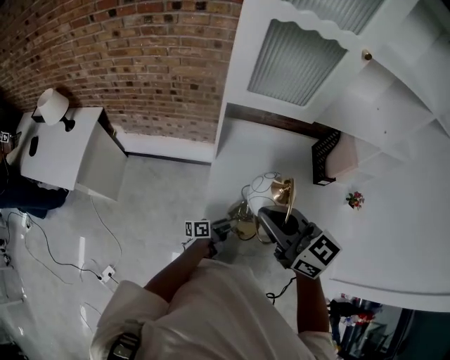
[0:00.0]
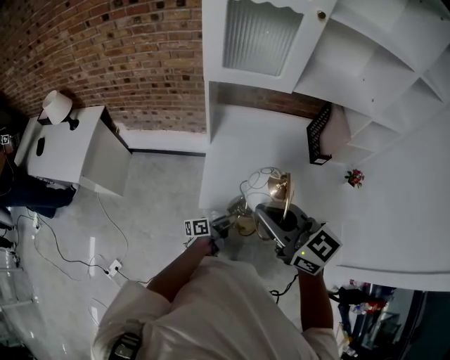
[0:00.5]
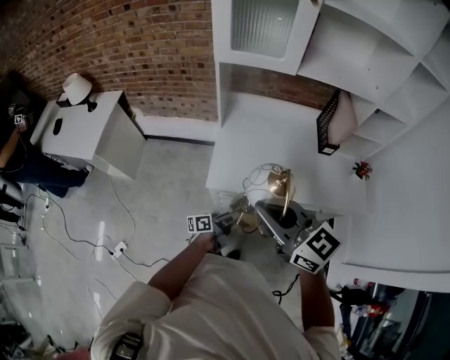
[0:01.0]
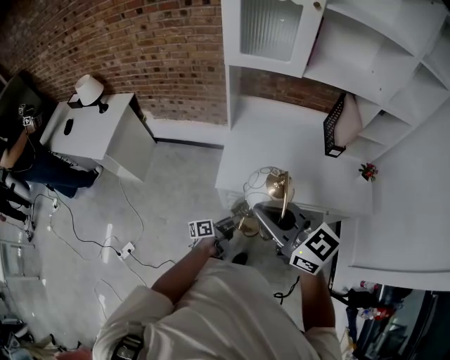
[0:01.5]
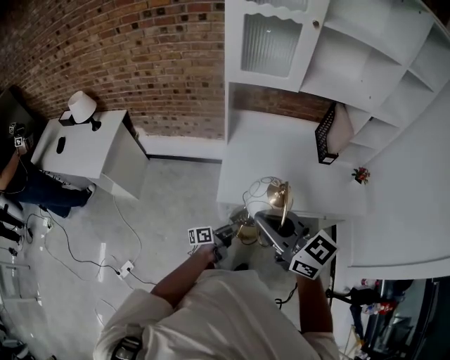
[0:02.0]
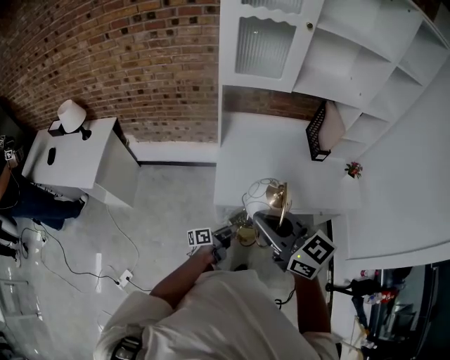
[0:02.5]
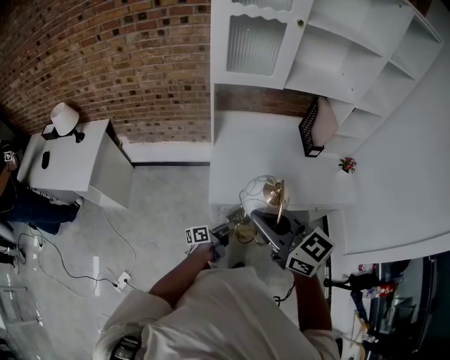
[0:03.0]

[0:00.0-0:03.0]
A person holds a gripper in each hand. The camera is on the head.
0:00.0 to 0:01.5: The grippers both shift backward by approximately 20 cm.
0:01.5 to 0:03.0: The right gripper goes roughly 5 cm to the left.

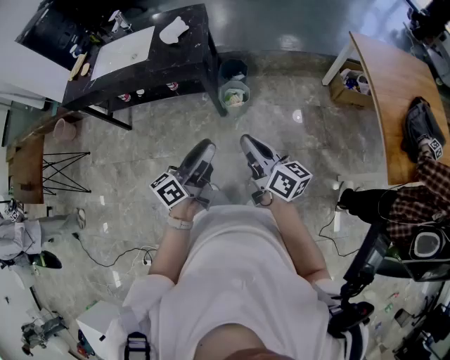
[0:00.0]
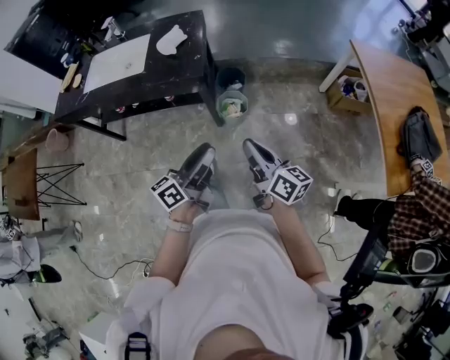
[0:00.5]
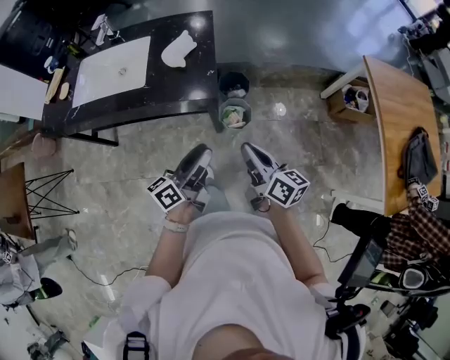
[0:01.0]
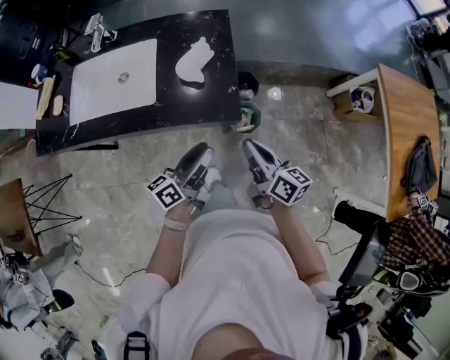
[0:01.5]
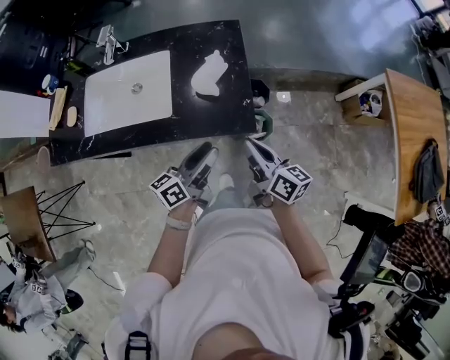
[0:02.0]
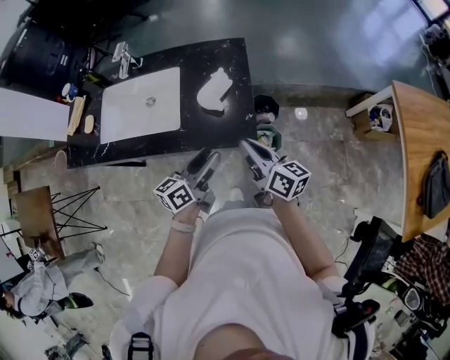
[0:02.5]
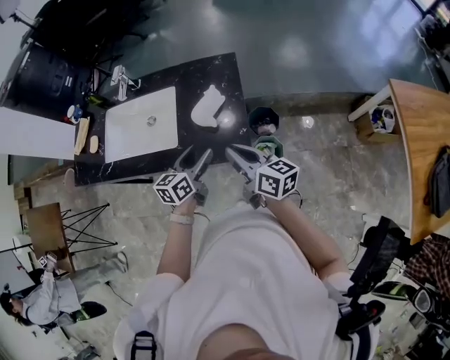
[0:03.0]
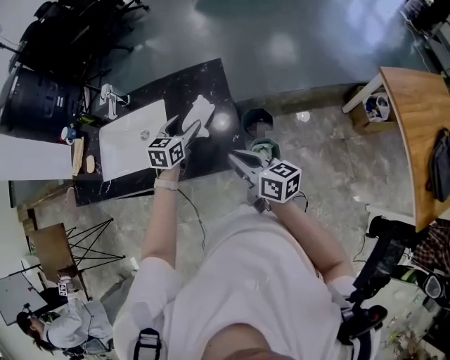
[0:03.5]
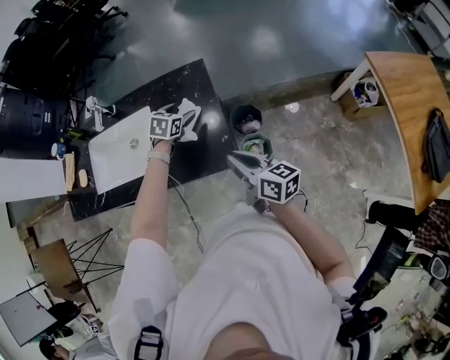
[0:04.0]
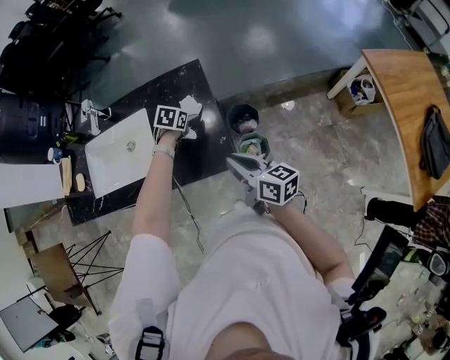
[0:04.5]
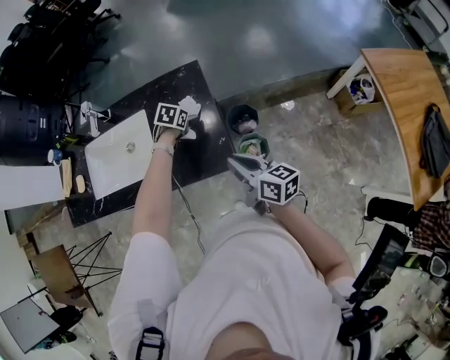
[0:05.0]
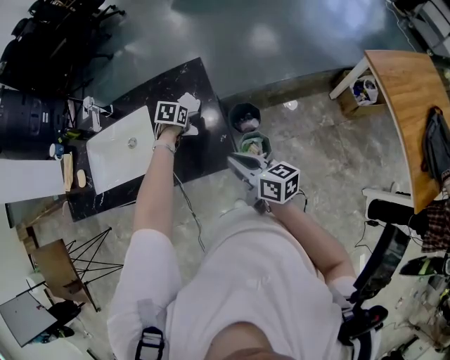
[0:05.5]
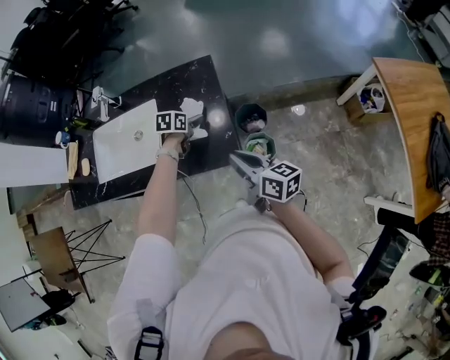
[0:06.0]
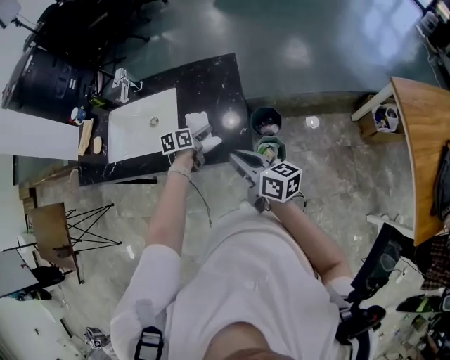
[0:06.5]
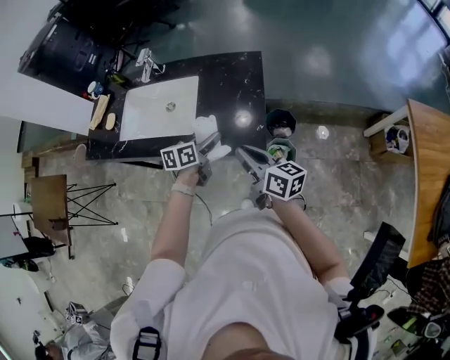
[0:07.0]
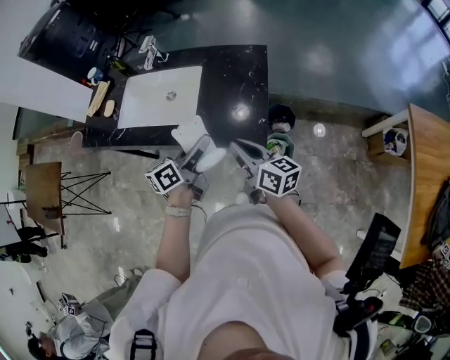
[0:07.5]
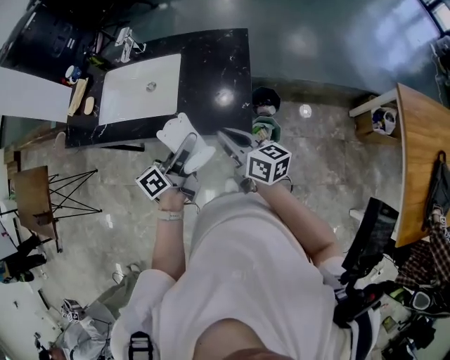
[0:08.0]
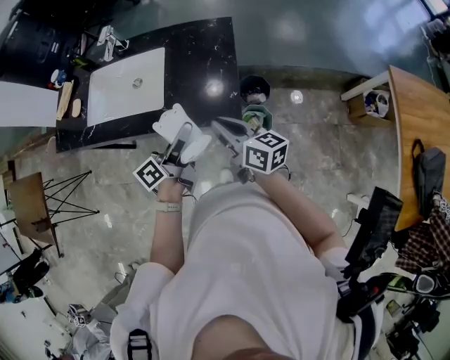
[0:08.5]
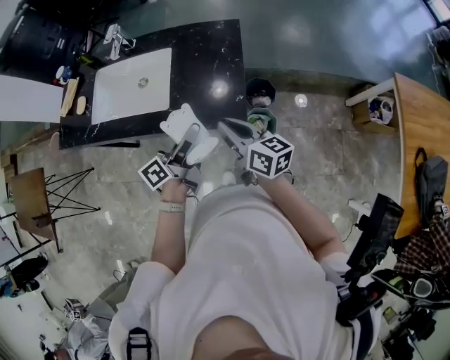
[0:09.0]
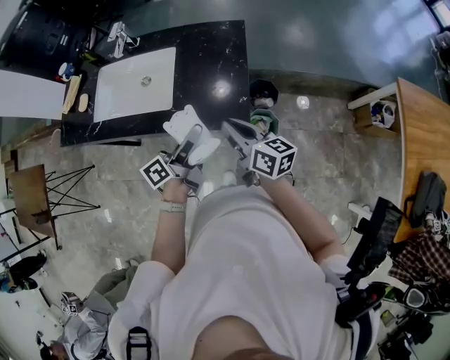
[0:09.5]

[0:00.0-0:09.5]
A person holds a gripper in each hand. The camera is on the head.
0:00.0 to 0:02.0: The two grippers travel together, forward and to the left, roughly 50 cm.
0:02.0 to 0:04.0: The right gripper heads forward and to the right, covering approximately 10 cm, while the left gripper moves forward, some 30 cm, points its fingers approximately 50 degrees further downward, and opens.
0:04.0 to 0:05.5: The left gripper is displaced downward by roughly 5 cm.
0:05.5 to 0:07.5: The left gripper moves backward and upward, approximately 30 cm, and points its fingers some 50 degrees further upward. Meanwhile the right gripper goes approximately 10 cm to the left.
0:07.5 to 0:09.5: The left gripper swivels some 20 degrees.

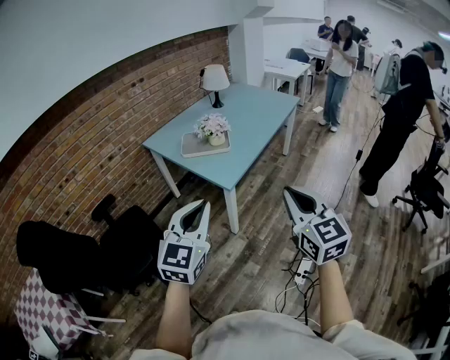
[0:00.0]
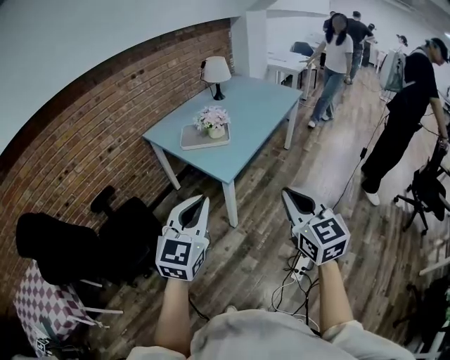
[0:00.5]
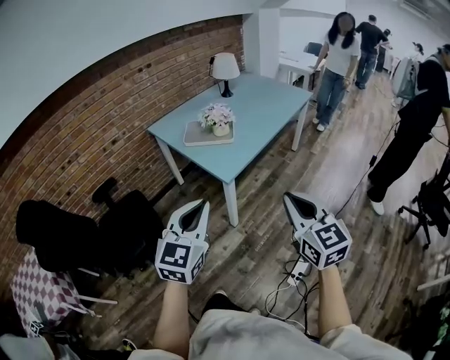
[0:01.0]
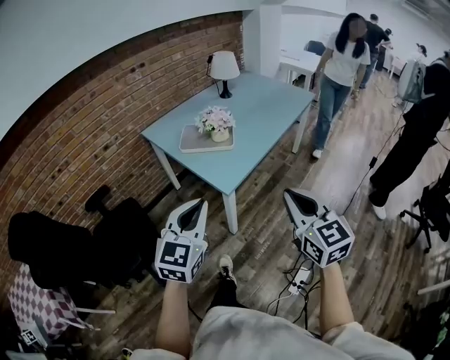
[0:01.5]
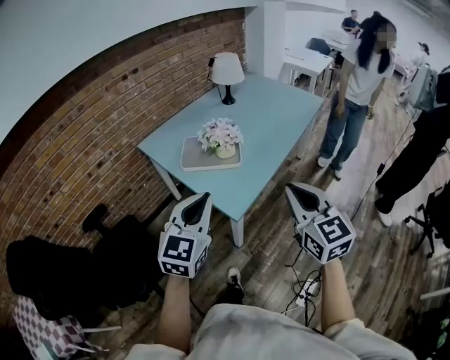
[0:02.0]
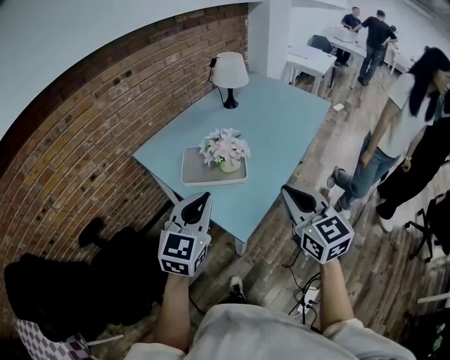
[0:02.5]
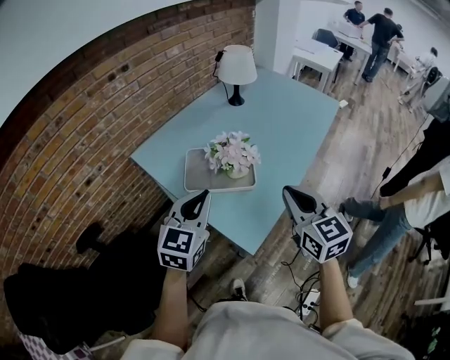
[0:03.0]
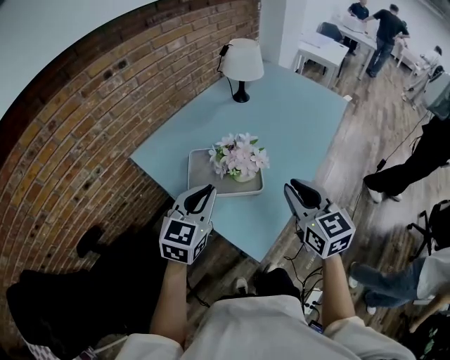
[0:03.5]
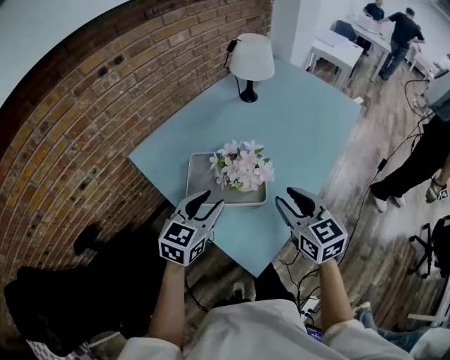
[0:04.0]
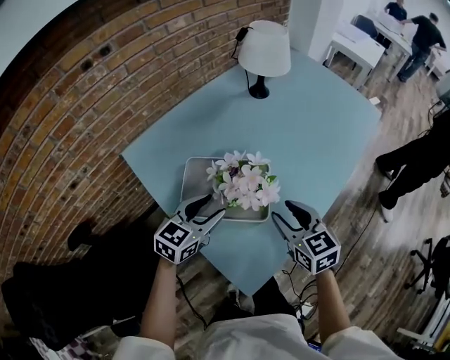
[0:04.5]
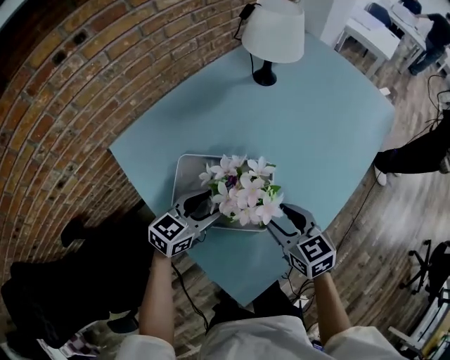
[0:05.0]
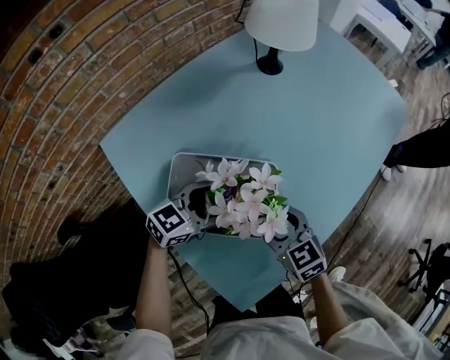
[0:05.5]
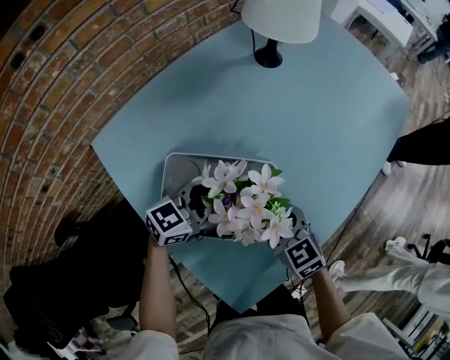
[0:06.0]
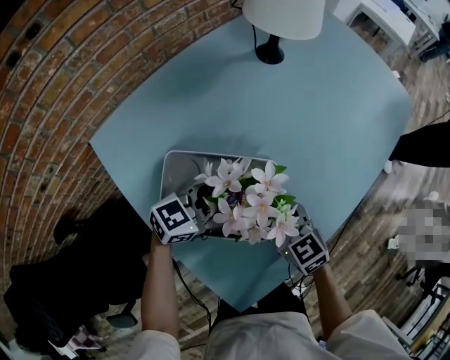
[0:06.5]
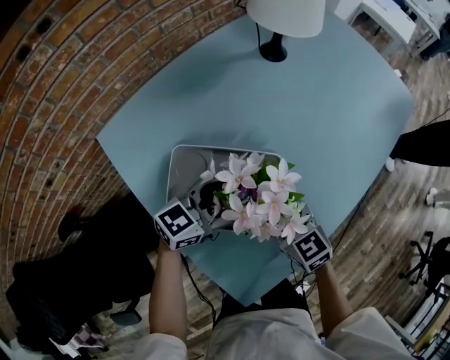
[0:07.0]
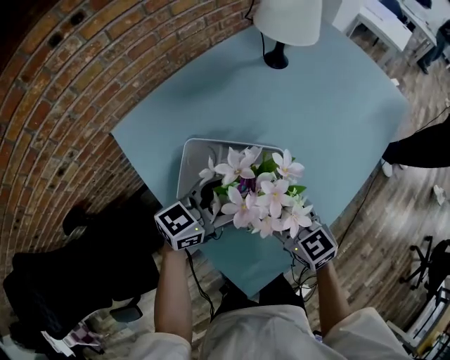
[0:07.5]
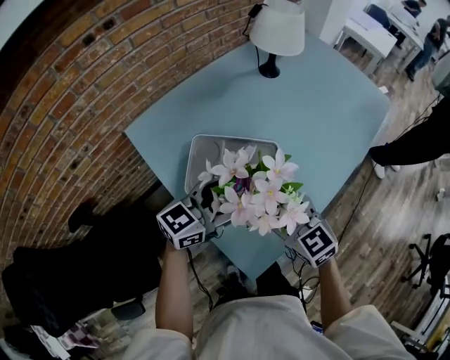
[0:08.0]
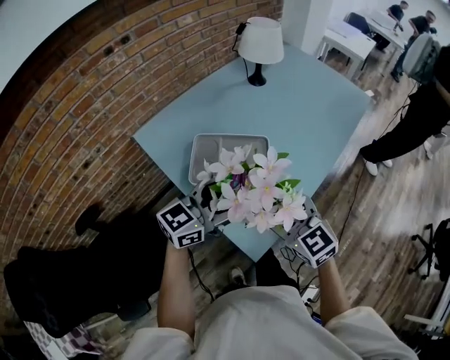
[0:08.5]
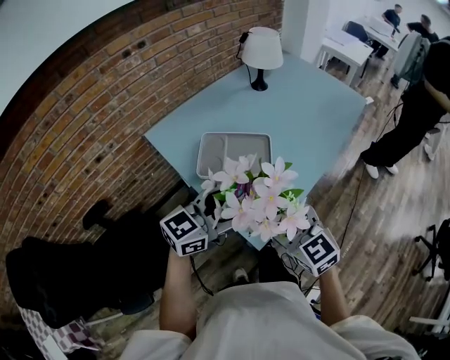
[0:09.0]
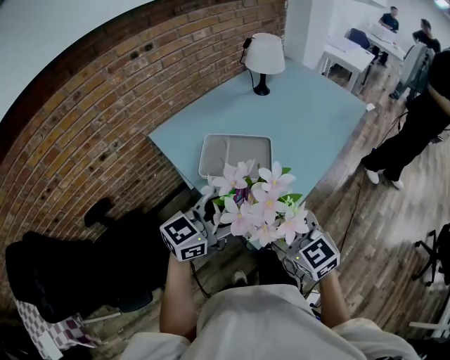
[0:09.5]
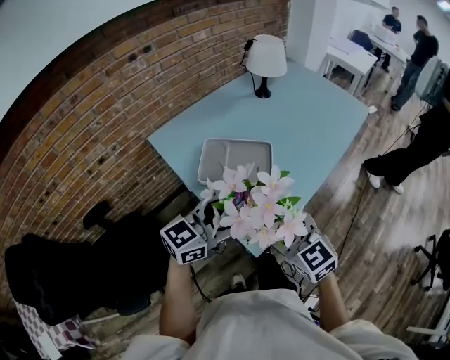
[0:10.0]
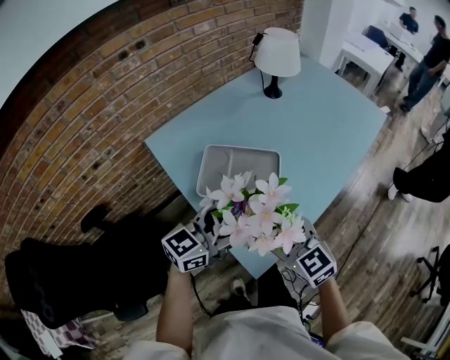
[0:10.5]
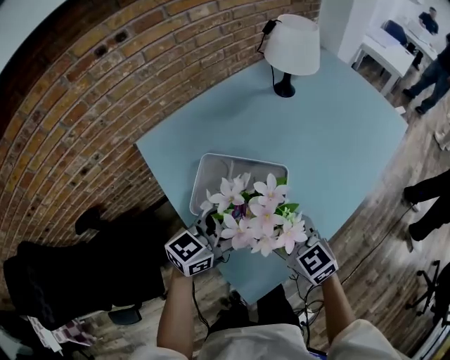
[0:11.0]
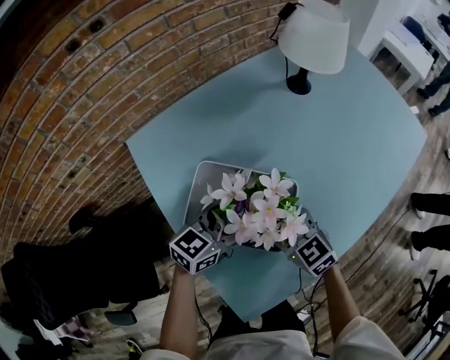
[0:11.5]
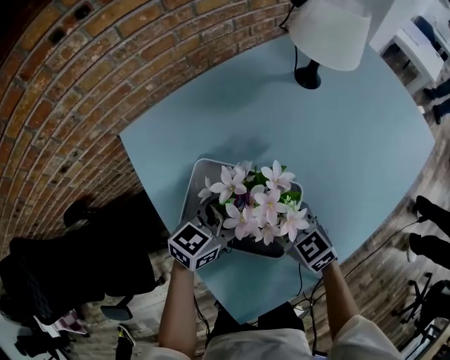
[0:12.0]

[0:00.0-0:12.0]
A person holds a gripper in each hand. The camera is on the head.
0:00.0 to 0:02.0: The grippers both shift forward by approximately 25 cm.
0:02.0 to 0:04.0: The two grippers go about 35 cm forward and downward. The left gripper opens, while the right gripper opens up.
0:04.0 to 0:06.0: Both grippers move downward and forward, roughly 25 cm. The left gripper swivels some 30 degrees, and opens. Meanwhile the right gripper rotates about 30 degrees, and opens.
0:06.0 to 0:08.0: The two grippers go some 15 cm upward and backward.
0:08.0 to 0:10.0: The two grippers go about 15 cm backward and upward.
0:10.0 to 0:12.0: Both grippers move forward and downward, roughly 35 cm. The right gripper changes its angle by approximately 20 degrees, while the left gripper swivels roughly 30 degrees.

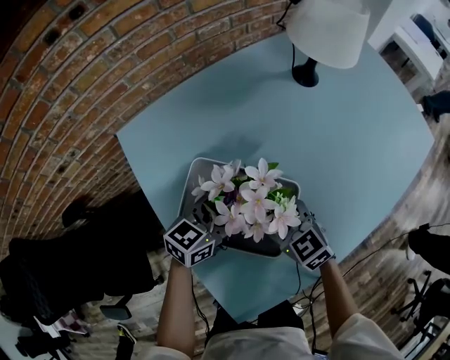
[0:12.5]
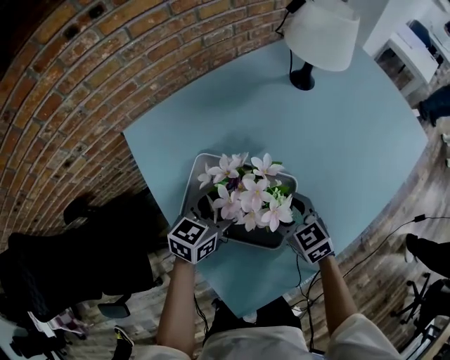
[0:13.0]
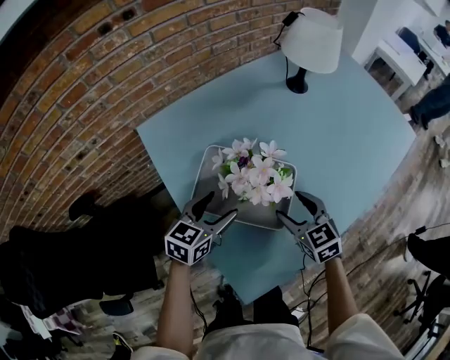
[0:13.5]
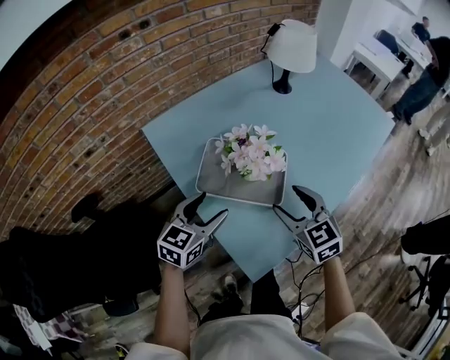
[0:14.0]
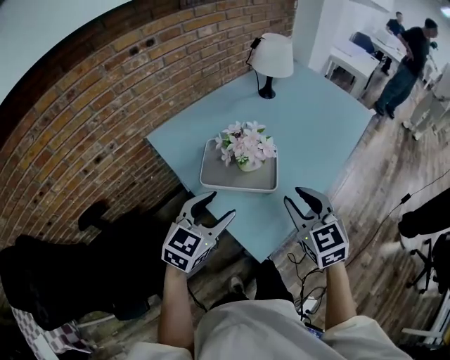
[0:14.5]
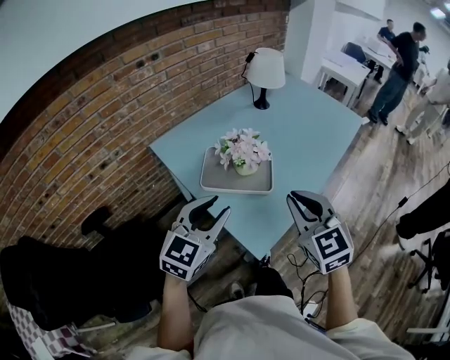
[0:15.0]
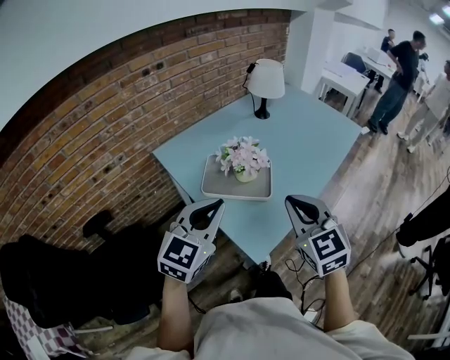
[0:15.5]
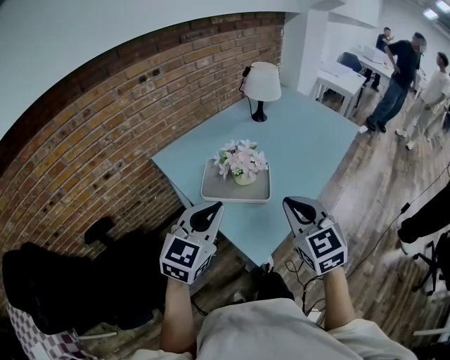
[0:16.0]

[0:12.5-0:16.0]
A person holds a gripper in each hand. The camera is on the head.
0:12.5 to 0:14.5: The two grippers go about 30 cm backward and upward. The left gripper swivels some 30 degrees; the right gripper turns by about 40 degrees, and closes its fingers.
0:14.5 to 0:16.0: The two grippers go about 10 cm upward and backward. The left gripper closes. The right gripper closes.
